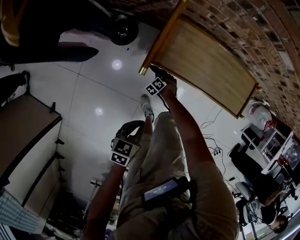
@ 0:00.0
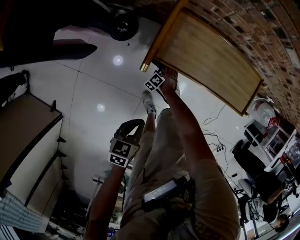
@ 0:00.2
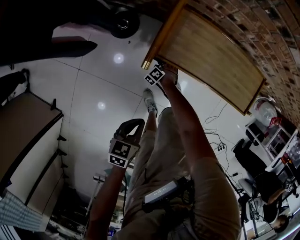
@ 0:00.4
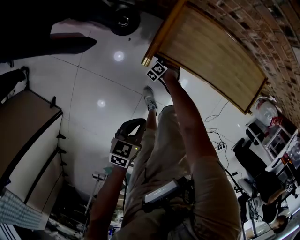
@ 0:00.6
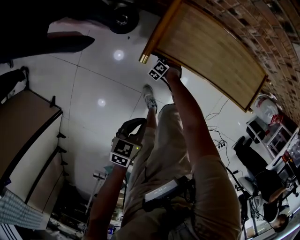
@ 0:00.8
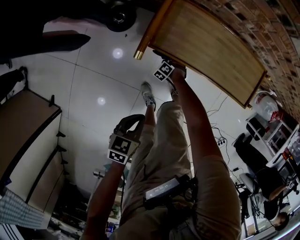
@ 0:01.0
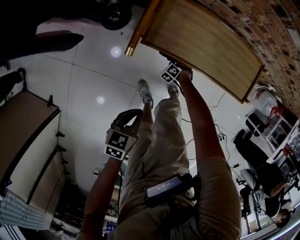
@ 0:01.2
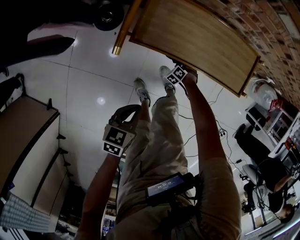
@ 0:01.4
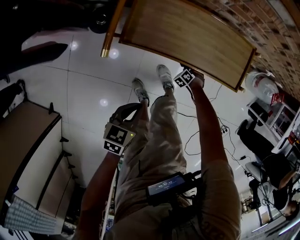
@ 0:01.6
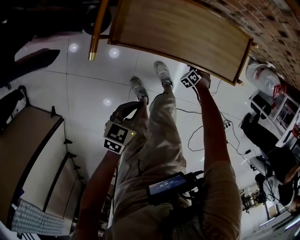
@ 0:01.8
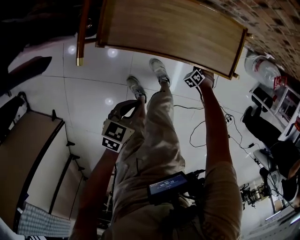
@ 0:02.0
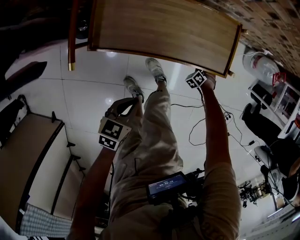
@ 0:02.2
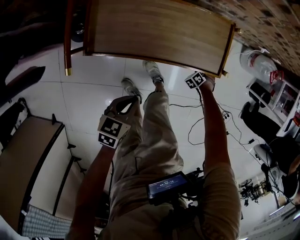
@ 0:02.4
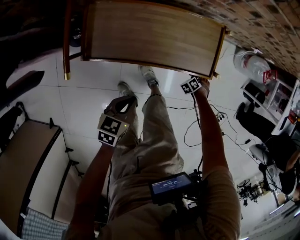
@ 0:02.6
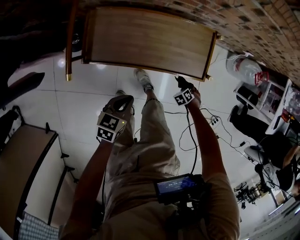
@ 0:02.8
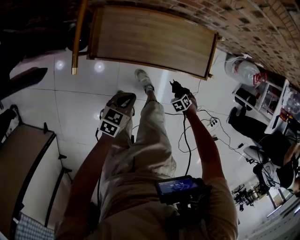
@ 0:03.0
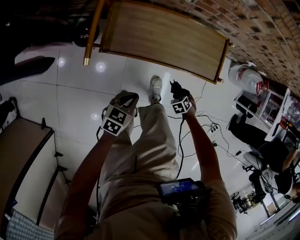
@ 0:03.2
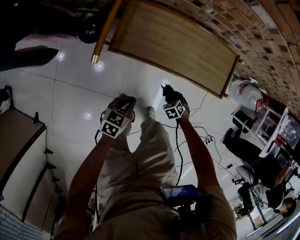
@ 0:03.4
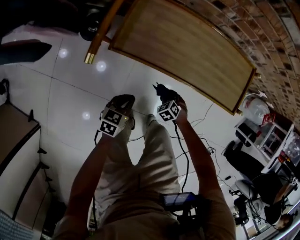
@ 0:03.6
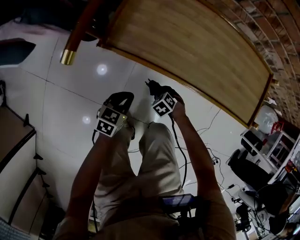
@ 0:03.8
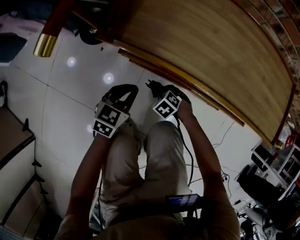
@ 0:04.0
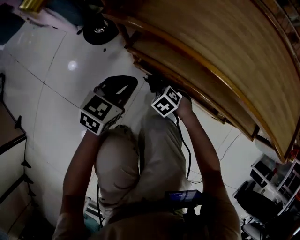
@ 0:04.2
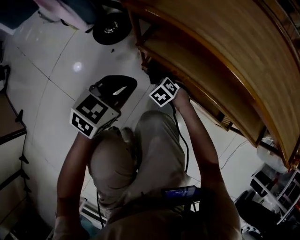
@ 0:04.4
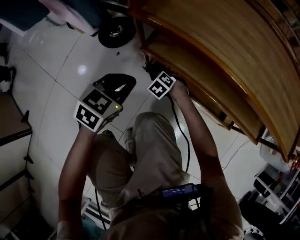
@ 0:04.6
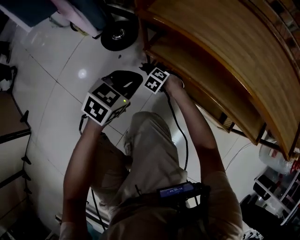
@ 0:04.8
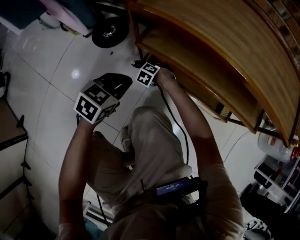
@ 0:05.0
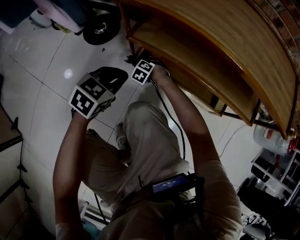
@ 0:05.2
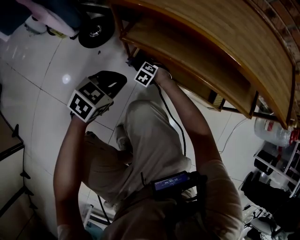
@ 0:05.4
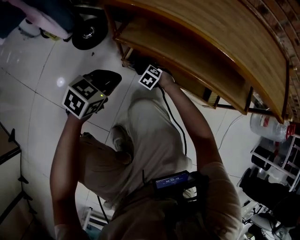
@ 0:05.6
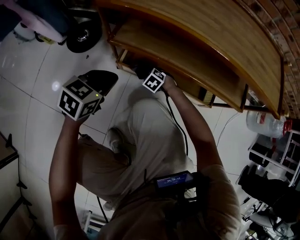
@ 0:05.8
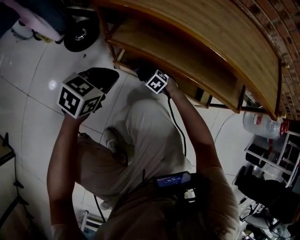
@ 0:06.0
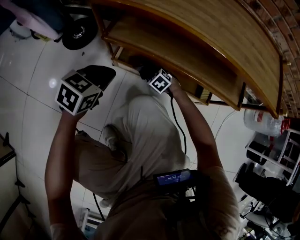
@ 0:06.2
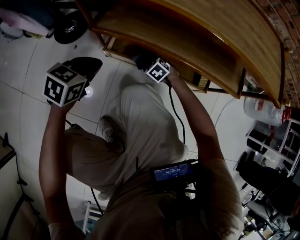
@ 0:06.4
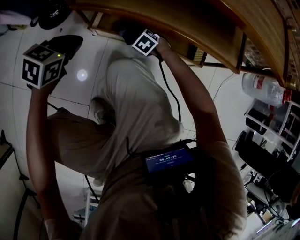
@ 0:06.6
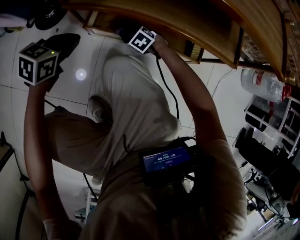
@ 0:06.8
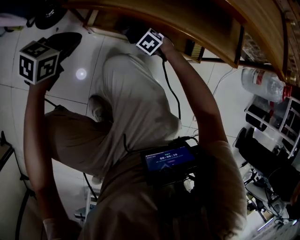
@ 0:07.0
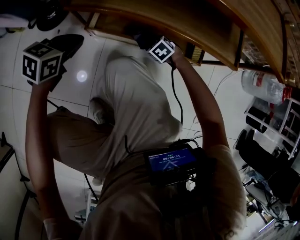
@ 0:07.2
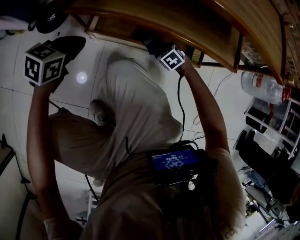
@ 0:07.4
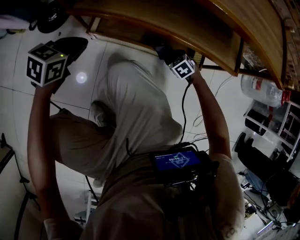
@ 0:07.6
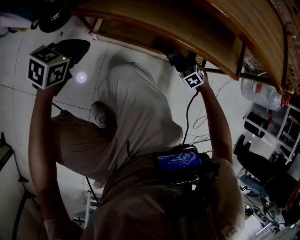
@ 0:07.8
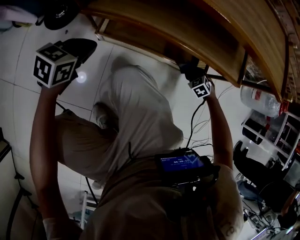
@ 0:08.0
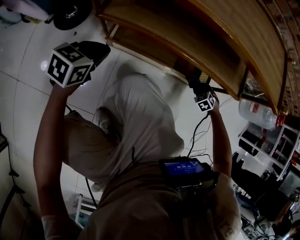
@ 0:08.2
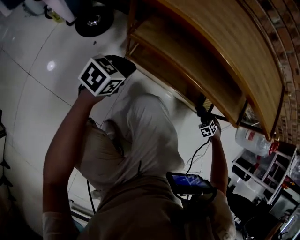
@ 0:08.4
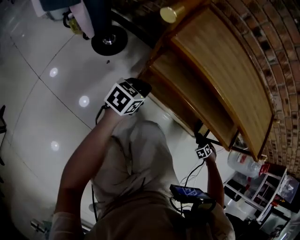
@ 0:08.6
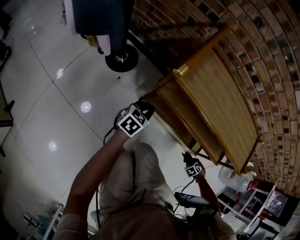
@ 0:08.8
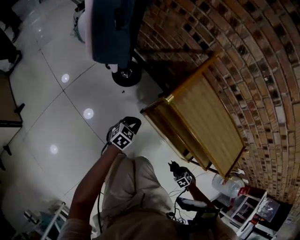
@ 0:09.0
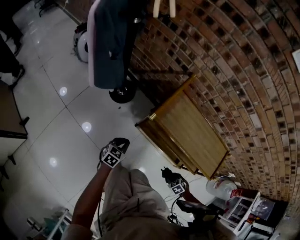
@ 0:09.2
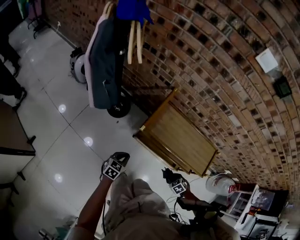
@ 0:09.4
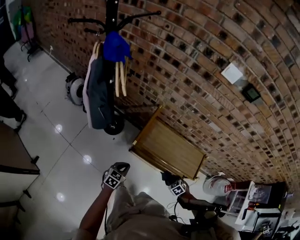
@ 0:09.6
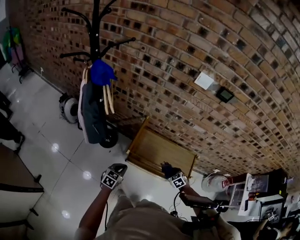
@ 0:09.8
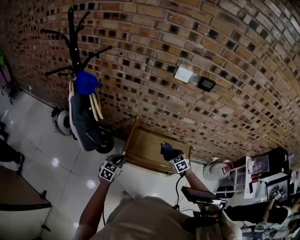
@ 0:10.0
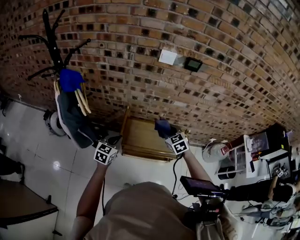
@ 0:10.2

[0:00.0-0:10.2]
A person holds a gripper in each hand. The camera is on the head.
0:00.0 to 0:01.4: The left gripper changes place by some 5 cm.
0:01.4 to 0:03.0: The left gripper changes place by approximately 15 cm.
0:03.0 to 0:04.4: The left gripper moves downward, roughly 30 cm, and rotates about 30 degrees.
0:07.2 to 0:08.8: The left gripper travels upward by about 10 cm.
0:08.8 to 0:10.2: The left gripper goes some 60 cm upward.

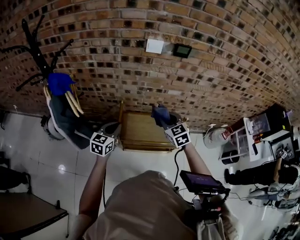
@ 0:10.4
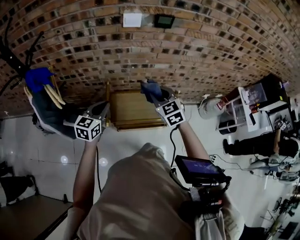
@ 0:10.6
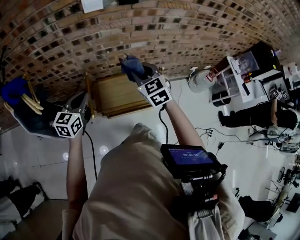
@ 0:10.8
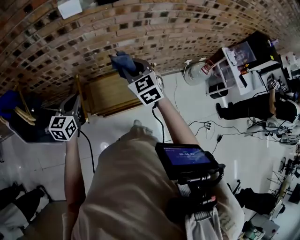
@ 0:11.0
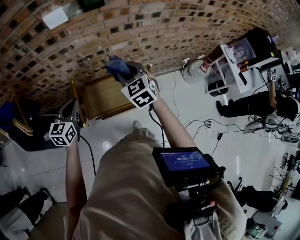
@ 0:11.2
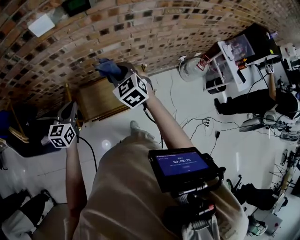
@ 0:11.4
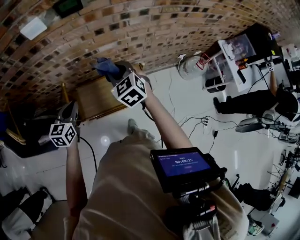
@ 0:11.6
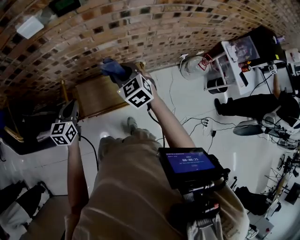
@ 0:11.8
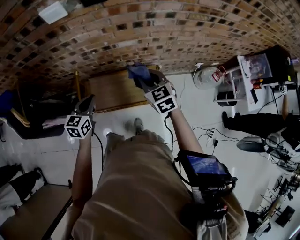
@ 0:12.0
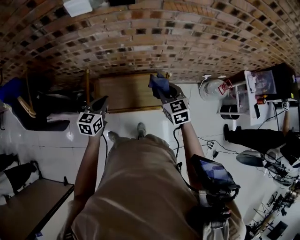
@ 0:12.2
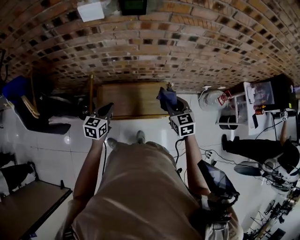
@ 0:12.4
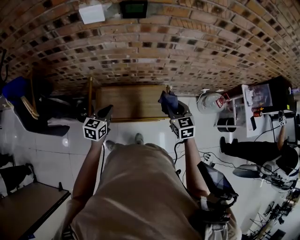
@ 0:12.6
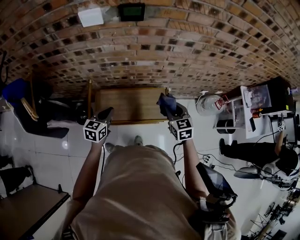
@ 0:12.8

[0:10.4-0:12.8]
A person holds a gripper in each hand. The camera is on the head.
0:10.4 to 0:11.6: The left gripper ends up some 15 cm from where it was.
0:11.6 to 0:12.8: The left gripper moves downward, approximately 10 cm.

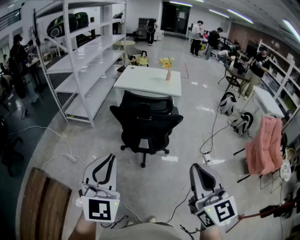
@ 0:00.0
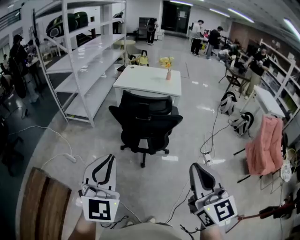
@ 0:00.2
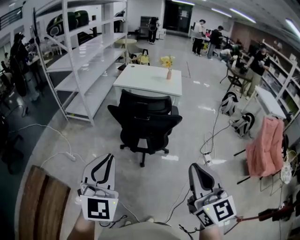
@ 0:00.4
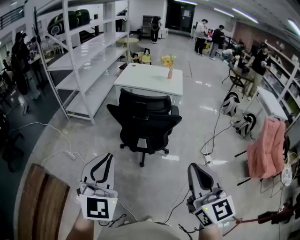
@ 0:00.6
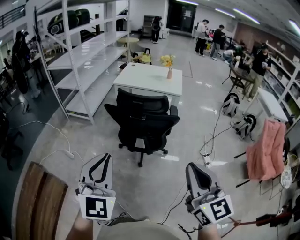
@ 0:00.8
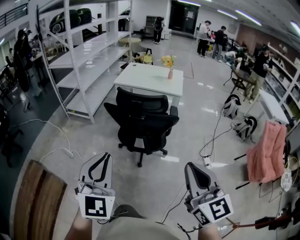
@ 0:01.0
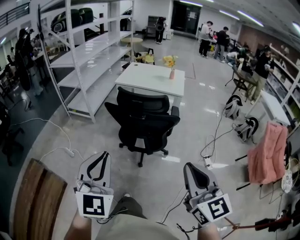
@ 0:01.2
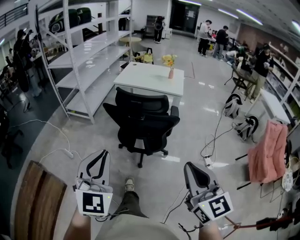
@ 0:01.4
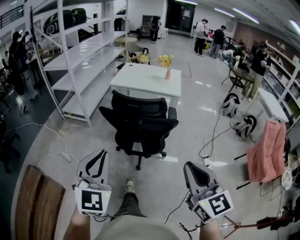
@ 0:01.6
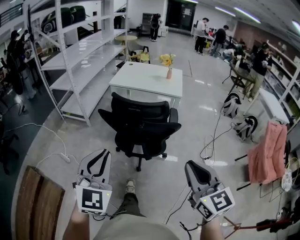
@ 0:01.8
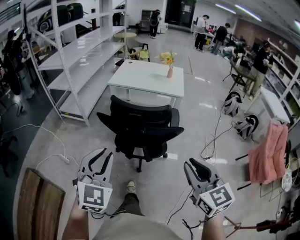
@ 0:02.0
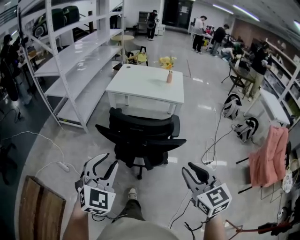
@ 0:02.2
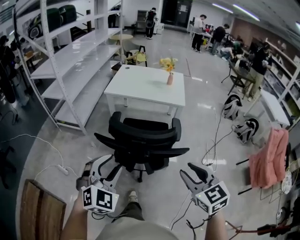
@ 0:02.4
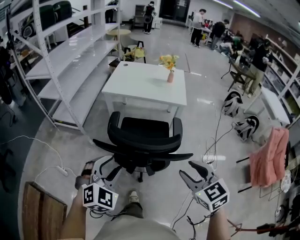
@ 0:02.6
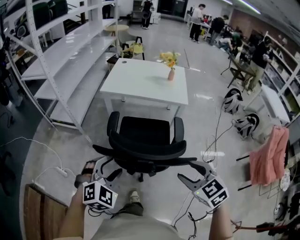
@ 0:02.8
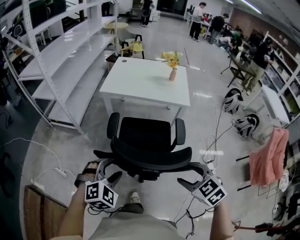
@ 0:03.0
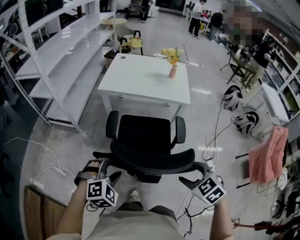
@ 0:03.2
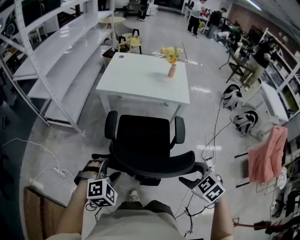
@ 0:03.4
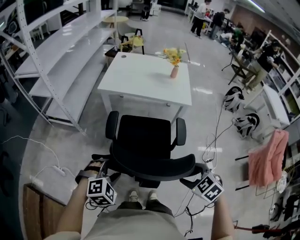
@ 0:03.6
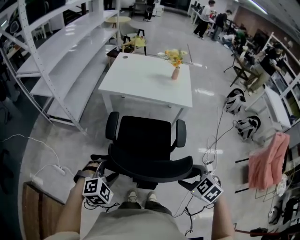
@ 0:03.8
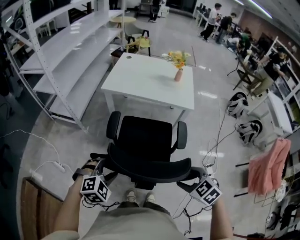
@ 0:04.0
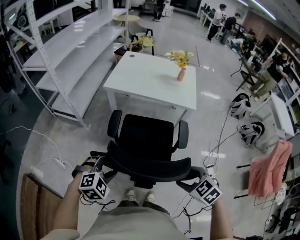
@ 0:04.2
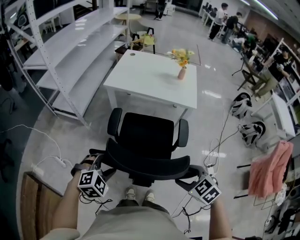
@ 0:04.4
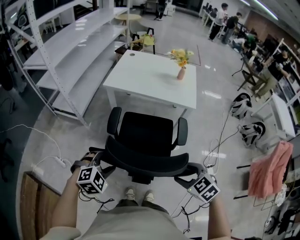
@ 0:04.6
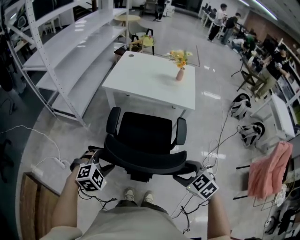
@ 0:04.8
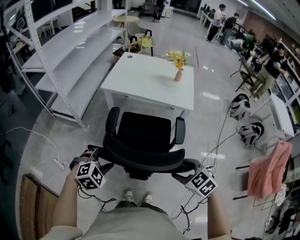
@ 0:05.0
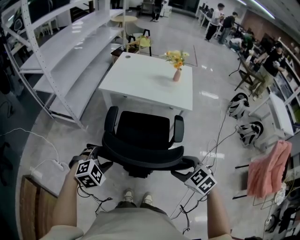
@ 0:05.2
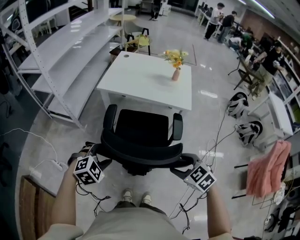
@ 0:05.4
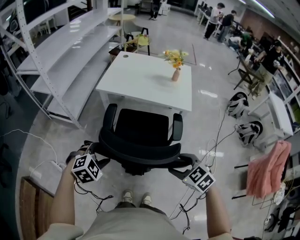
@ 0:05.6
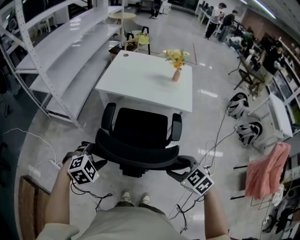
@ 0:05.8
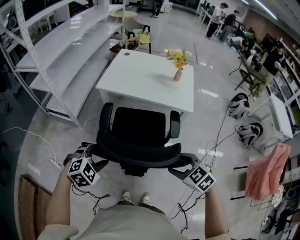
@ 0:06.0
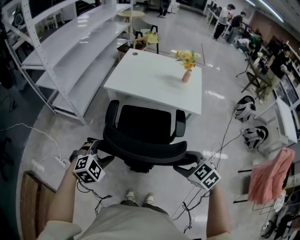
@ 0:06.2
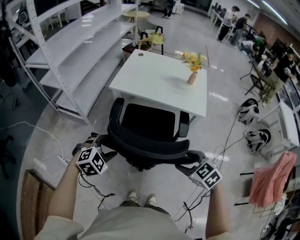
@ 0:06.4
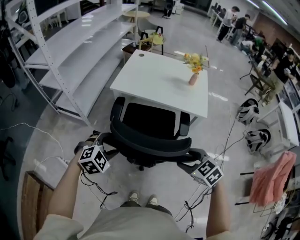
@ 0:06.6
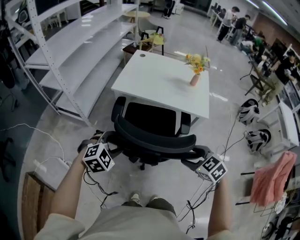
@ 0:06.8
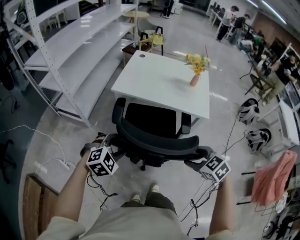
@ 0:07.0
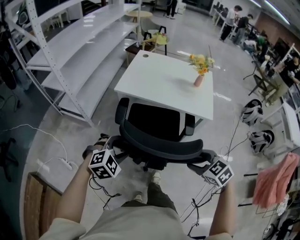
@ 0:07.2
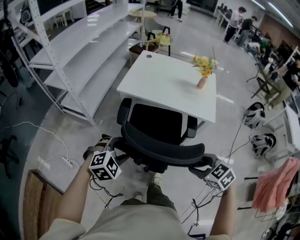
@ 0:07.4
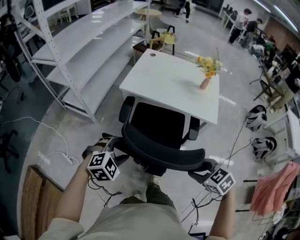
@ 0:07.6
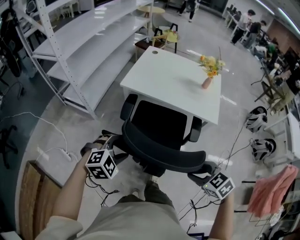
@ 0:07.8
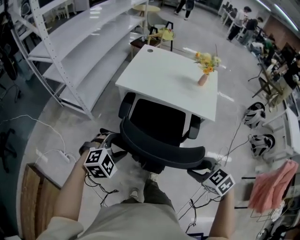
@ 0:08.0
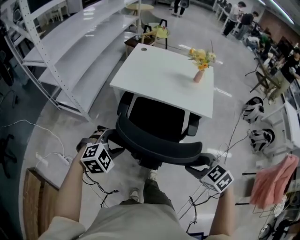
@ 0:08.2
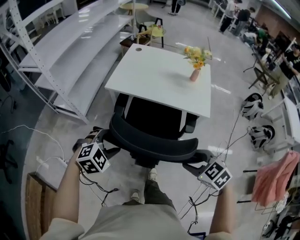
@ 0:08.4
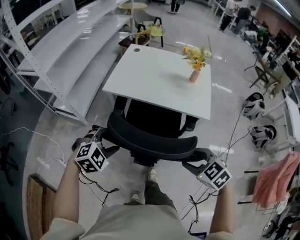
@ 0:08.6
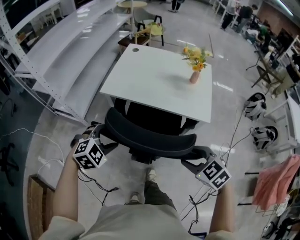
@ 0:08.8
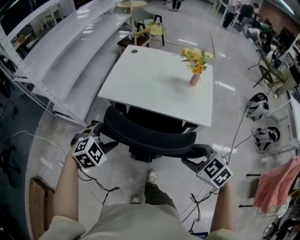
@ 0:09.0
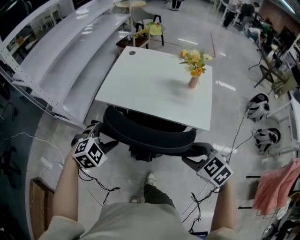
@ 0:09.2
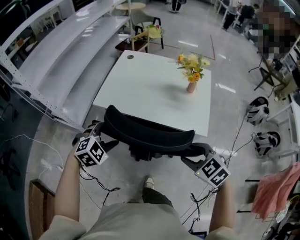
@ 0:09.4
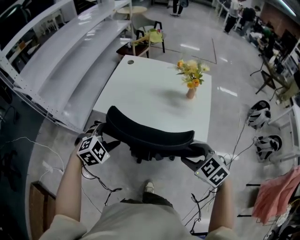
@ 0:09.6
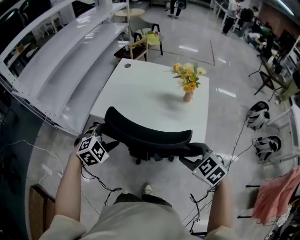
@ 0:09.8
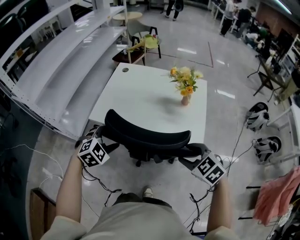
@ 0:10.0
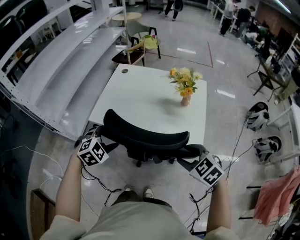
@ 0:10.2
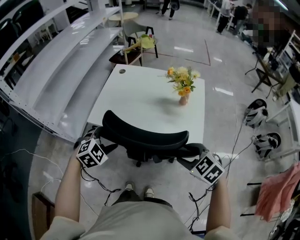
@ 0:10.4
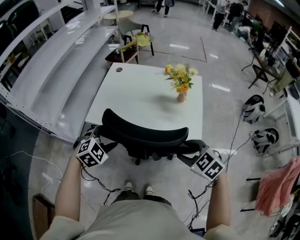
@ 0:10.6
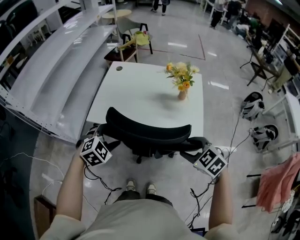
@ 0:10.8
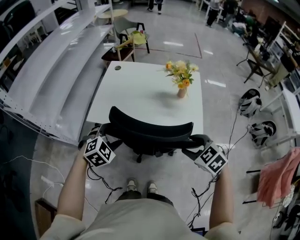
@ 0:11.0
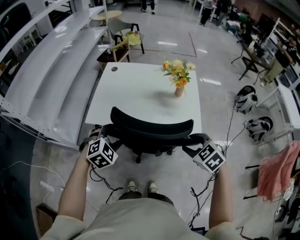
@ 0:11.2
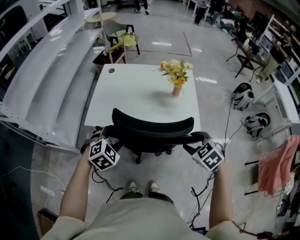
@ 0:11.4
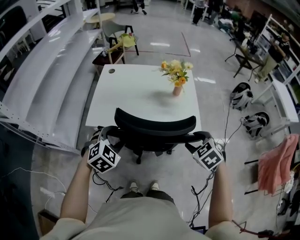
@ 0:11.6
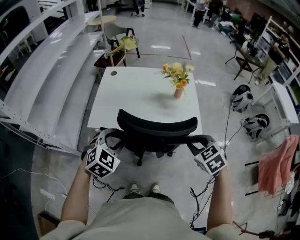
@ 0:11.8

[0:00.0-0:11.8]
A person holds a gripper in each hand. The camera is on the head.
0:00.0 to 0:01.4: The left gripper shifts approximately 5 cm to the right. Meanwhile the right gripper goes about 10 cm to the right and forward.
0:01.4 to 0:03.0: The grippers both shift forward and downward by approximately 40 cm. The left gripper angles its fingers downward, by about 40 degrees, and opens up. The right gripper tilts its fingers about 50 degrees downward, and opens.
0:03.0 to 0:04.4: The right gripper moves downward, roughly 5 cm; the left gripper ends up about 5 cm from where it was.
0:04.4 to 0:06.0: Both grippers travel together forward, about 10 cm.
0:06.0 to 0:07.4: Both grippers move forward, approximately 5 cm.
0:07.4 to 0:08.8: Both grippers move forward, roughly 10 cm.
0:08.8 to 0:10.4: The grippers both shift forward and to the right by approximately 20 cm.
0:10.4 to 0:11.8: The left gripper moves upward, some 5 cm. The right gripper changes its angle by approximately 30 degrees.
